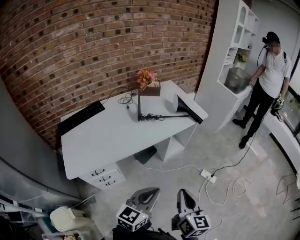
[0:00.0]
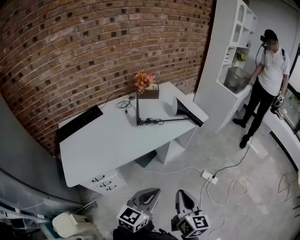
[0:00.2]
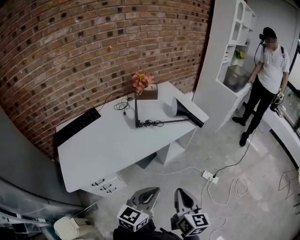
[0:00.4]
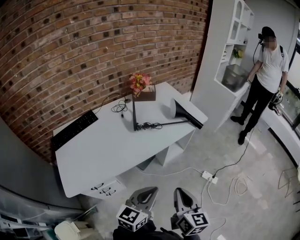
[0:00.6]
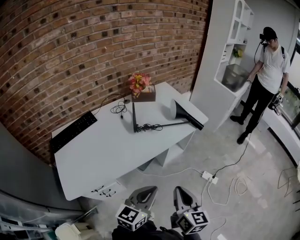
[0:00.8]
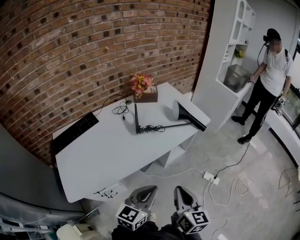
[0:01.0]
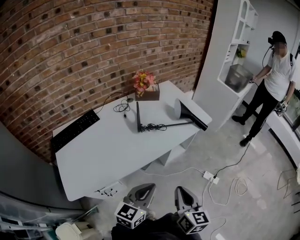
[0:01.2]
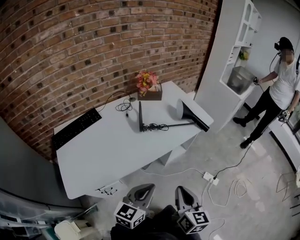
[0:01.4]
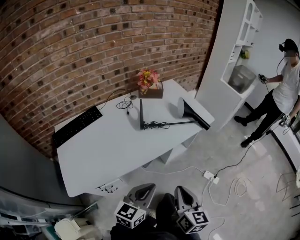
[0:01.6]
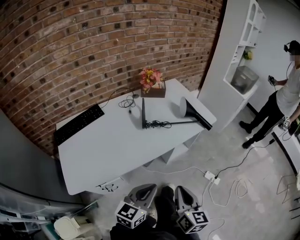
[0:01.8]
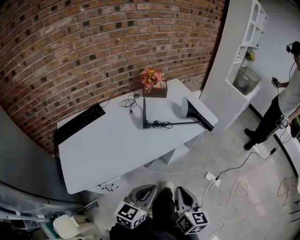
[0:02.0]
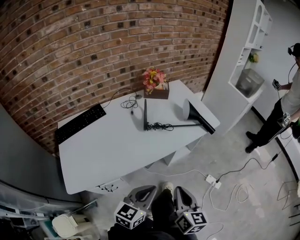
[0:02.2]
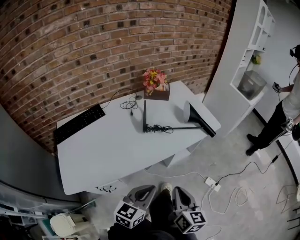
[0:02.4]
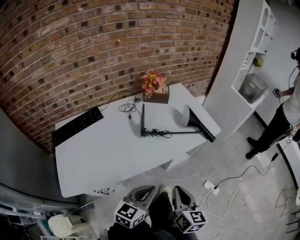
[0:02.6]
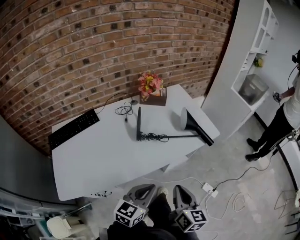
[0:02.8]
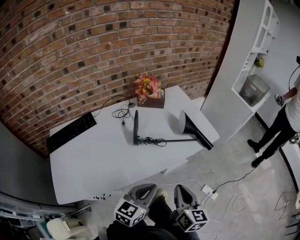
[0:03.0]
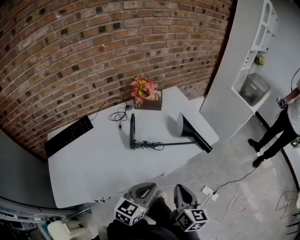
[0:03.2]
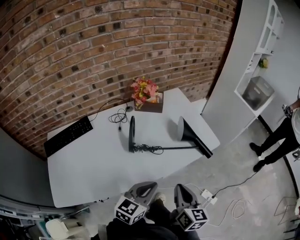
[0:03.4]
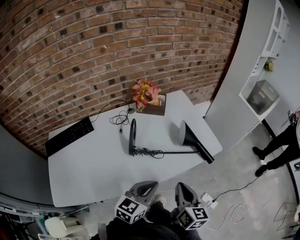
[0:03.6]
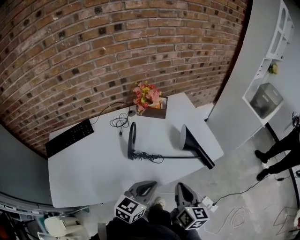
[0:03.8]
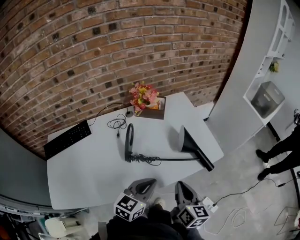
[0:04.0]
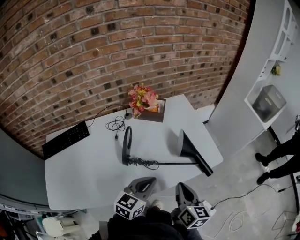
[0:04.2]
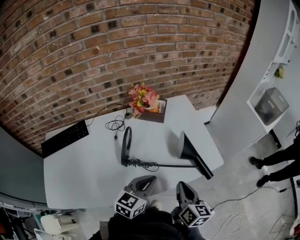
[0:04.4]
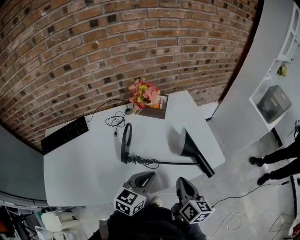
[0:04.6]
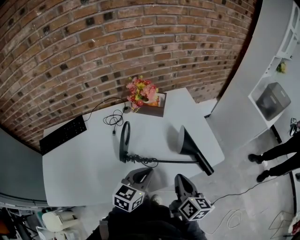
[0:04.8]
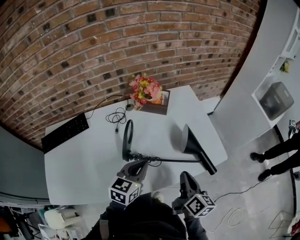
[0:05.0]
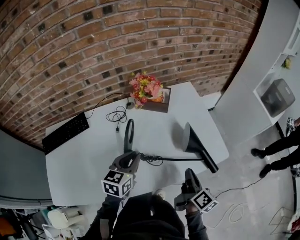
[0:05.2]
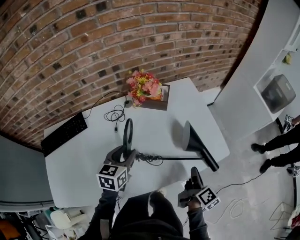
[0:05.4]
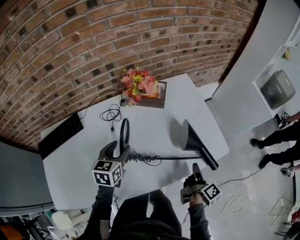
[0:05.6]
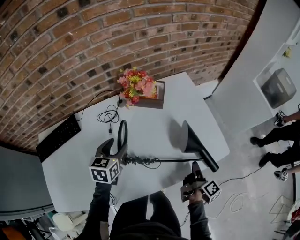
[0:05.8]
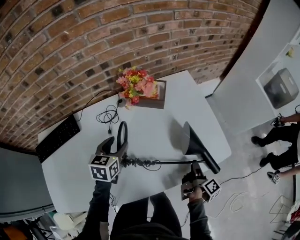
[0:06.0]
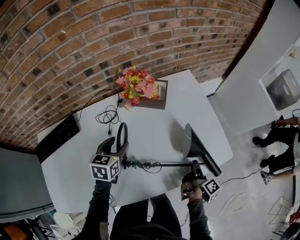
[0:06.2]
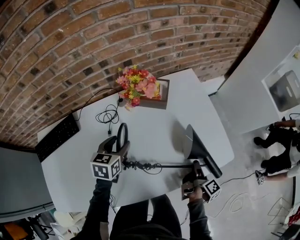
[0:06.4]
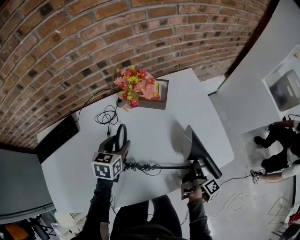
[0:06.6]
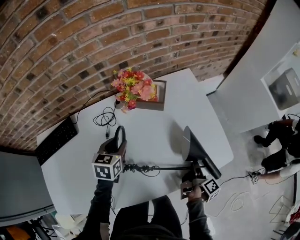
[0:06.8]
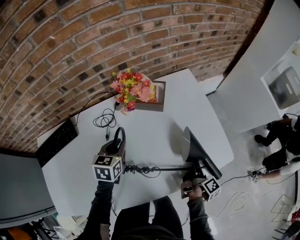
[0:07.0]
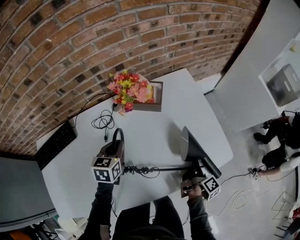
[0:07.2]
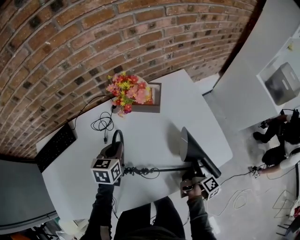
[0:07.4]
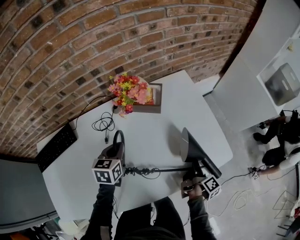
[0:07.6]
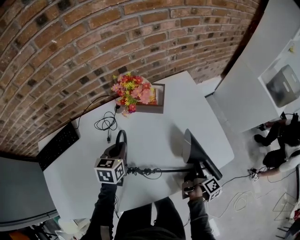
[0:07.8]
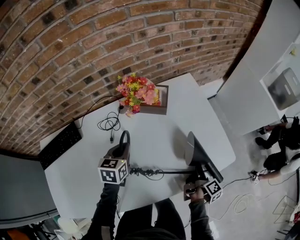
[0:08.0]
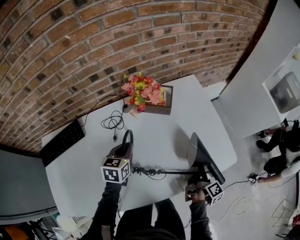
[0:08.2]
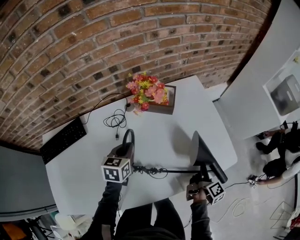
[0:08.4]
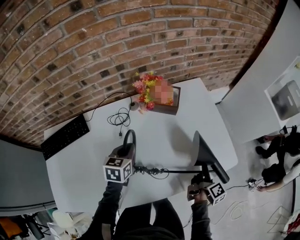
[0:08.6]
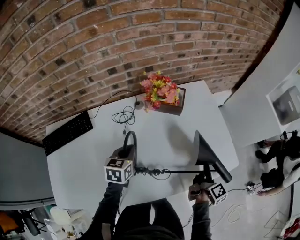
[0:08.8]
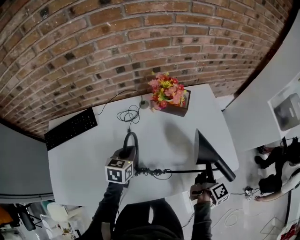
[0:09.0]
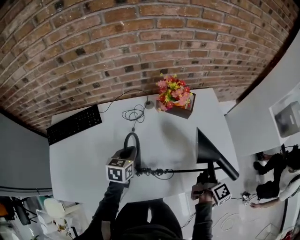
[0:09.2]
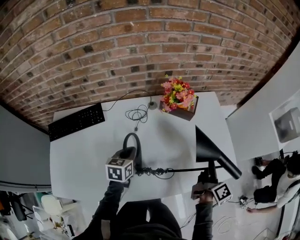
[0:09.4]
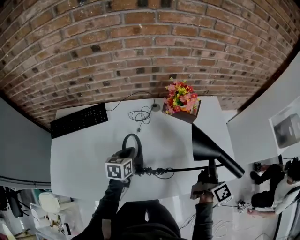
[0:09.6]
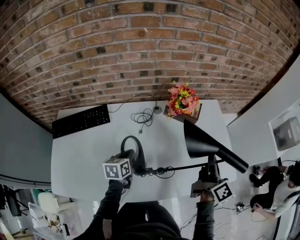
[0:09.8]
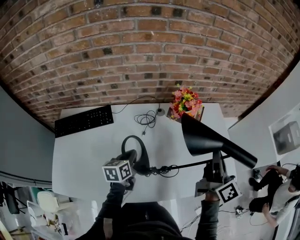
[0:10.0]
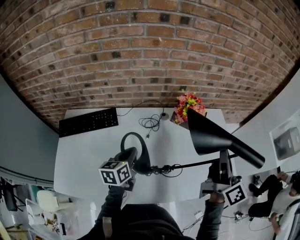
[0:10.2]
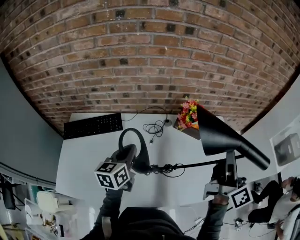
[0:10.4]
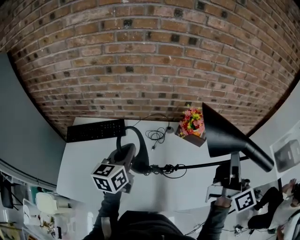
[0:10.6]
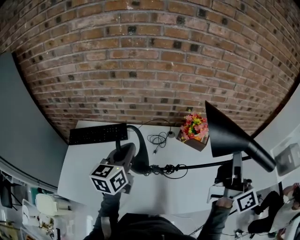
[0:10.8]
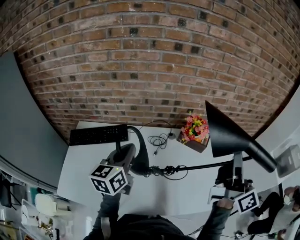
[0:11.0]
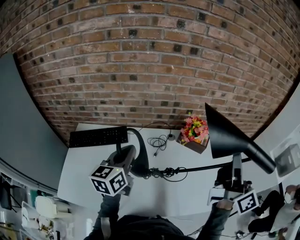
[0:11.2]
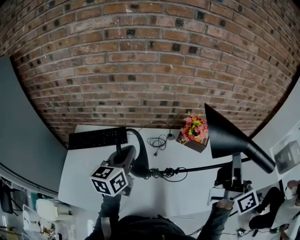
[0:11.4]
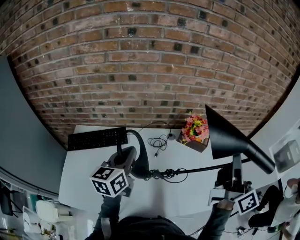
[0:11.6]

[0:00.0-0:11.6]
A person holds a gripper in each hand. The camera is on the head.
0:00.0 to 0:01.4: Both grippers move forward and to the left, some 15 cm.
0:01.4 to 0:02.8: Both grippers travel together forward, about 10 cm.
0:02.8 to 0:04.4: Both grippers travel together forward, some 25 cm.
0:04.4 to 0:05.8: The left gripper moves to the left and forward, approximately 25 cm, swivels about 30 degrees, and opens its fingers. Meanwhile the right gripper shifts some 15 cm downward, forward and to the right, rotates around the line of its fingers by some 50 degrees, clockwise from behind, and opens.
0:05.8 to 0:07.2: Both grippers travel together forward, some 5 cm. The left gripper closes its fingers. Meanwhile the right gripper closes up.
0:07.2 to 0:08.8: The right gripper heads upward, covering approximately 5 cm, while the left gripper shifts about 5 cm backward.
0:08.8 to 0:10.2: The right gripper heads upward and to the left, covering about 30 cm, and rotates roughly 50 degrees, while the left gripper heads to the left, upward and backward, covering some 15 cm, and rotates roughly 30 degrees.
0:10.2 to 0:11.6: The two grippers go about 10 cm upward.

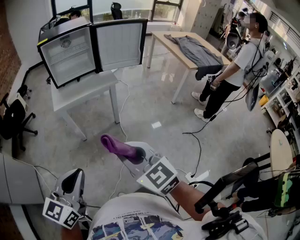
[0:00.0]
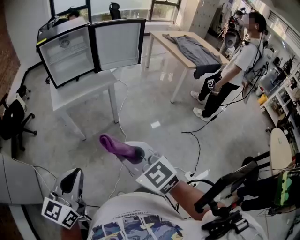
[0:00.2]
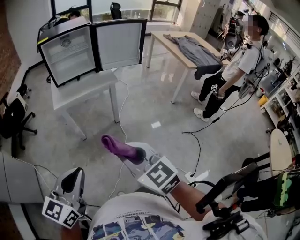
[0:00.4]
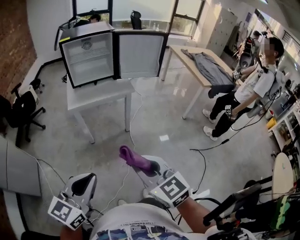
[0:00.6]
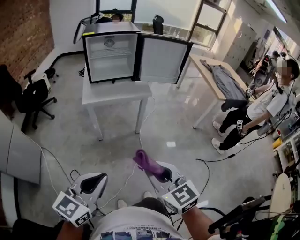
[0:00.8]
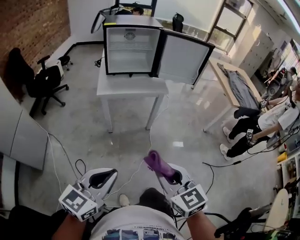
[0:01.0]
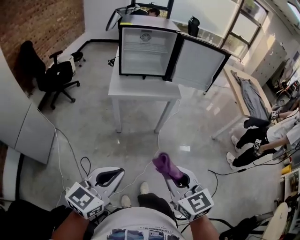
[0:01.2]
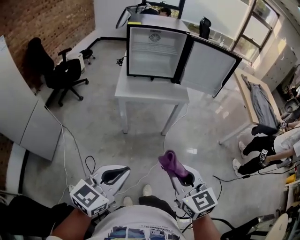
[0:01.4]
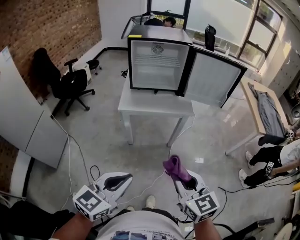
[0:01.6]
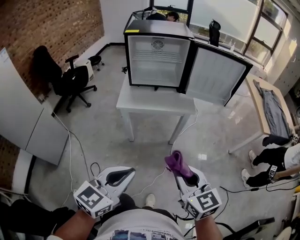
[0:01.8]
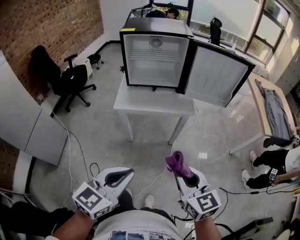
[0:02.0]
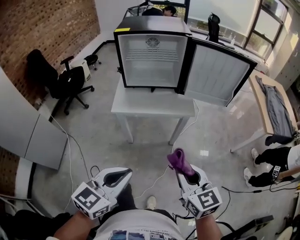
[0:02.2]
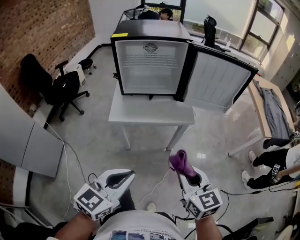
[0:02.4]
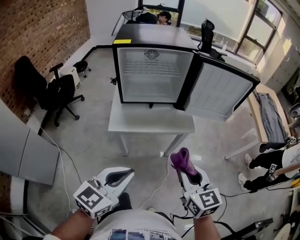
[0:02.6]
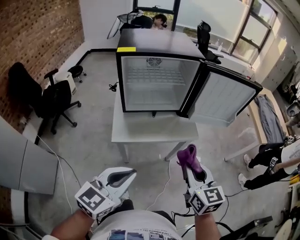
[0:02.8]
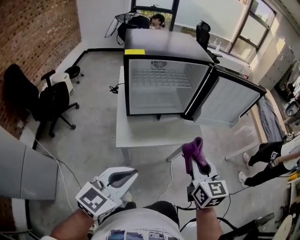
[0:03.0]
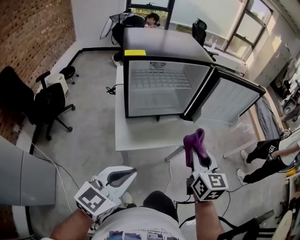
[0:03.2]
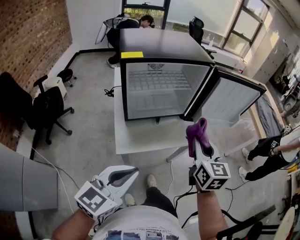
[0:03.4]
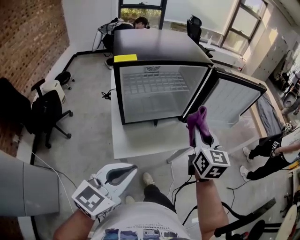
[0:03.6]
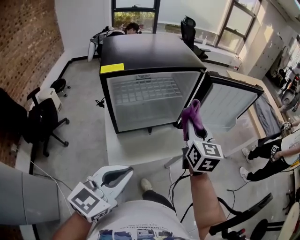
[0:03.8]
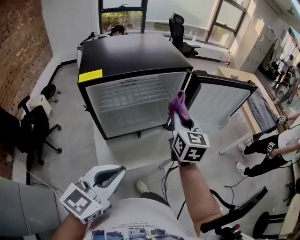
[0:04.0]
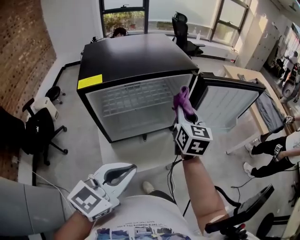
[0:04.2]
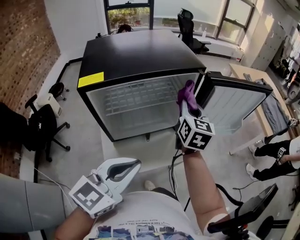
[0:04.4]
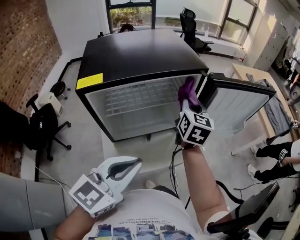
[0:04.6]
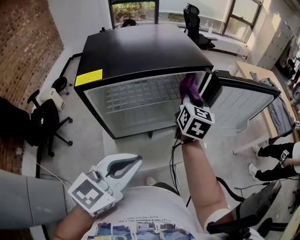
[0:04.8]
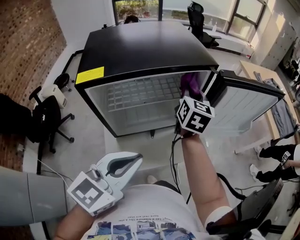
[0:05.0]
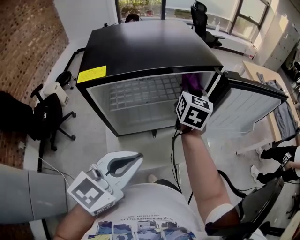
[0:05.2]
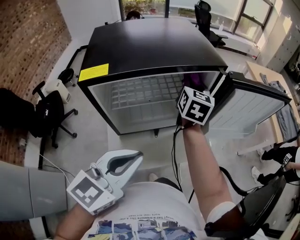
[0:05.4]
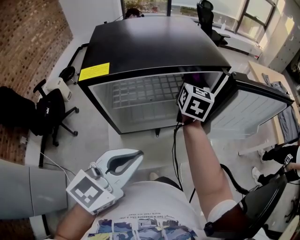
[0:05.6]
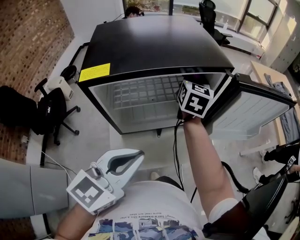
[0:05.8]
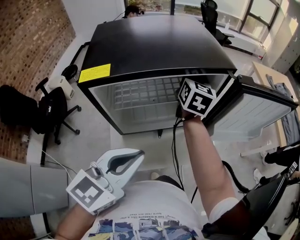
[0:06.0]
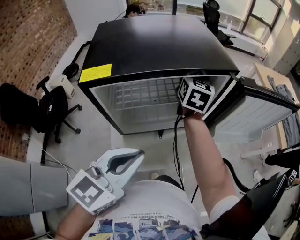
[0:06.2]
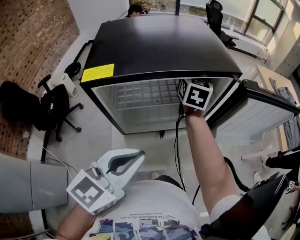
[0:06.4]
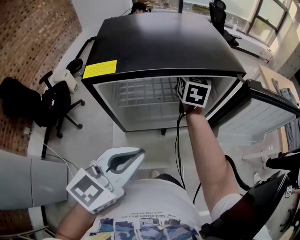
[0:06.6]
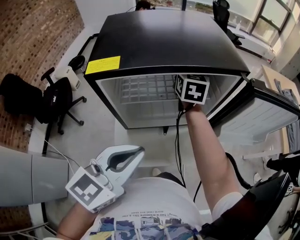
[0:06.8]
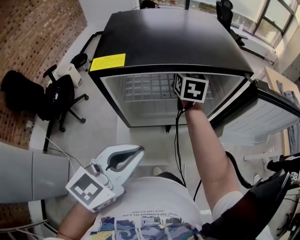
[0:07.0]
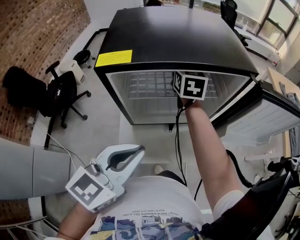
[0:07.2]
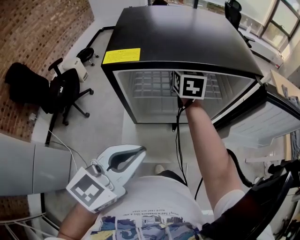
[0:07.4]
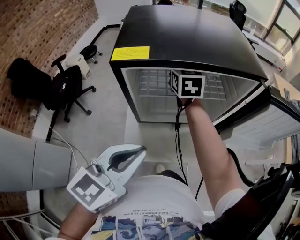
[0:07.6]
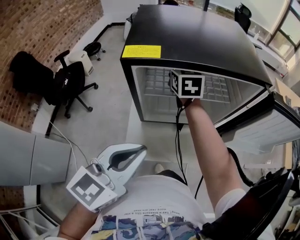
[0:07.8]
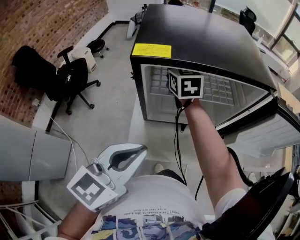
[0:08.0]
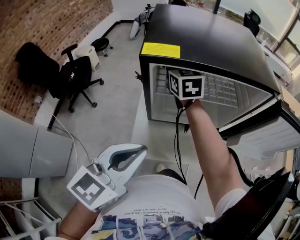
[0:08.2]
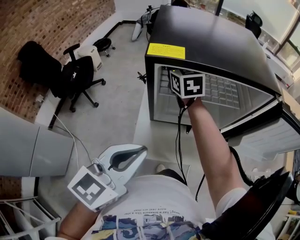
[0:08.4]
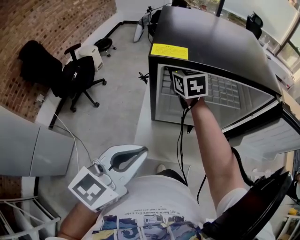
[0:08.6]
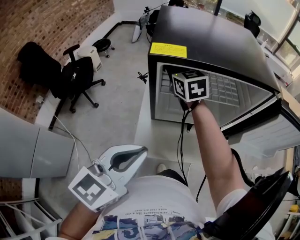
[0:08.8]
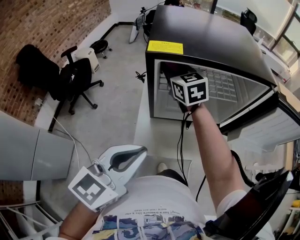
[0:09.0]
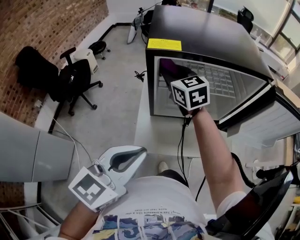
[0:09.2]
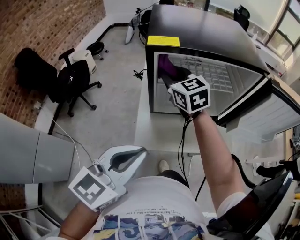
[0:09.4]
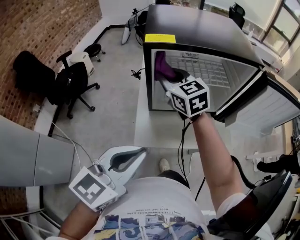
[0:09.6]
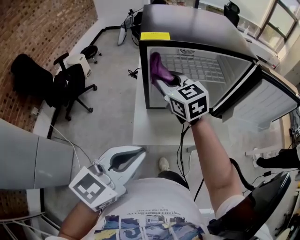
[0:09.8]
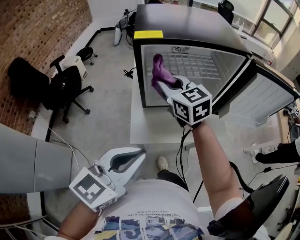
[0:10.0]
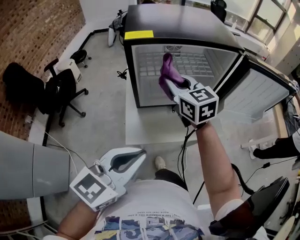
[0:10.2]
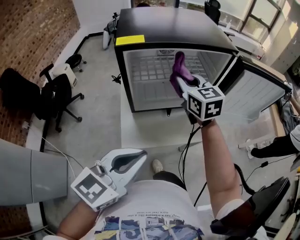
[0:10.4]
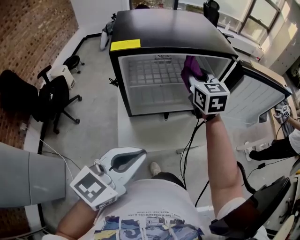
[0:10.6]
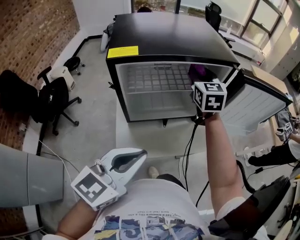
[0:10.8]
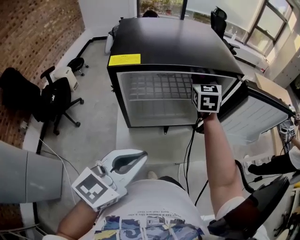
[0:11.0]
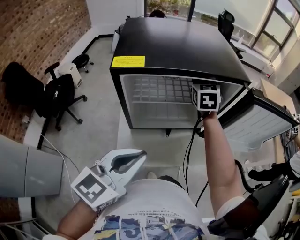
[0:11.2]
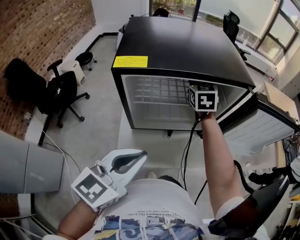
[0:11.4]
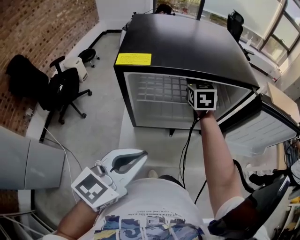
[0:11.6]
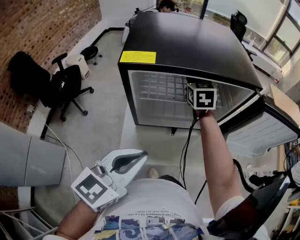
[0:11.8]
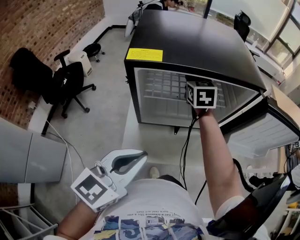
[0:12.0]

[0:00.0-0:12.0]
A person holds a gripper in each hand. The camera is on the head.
0:00.0 to 0:01.6: Both grippers move forward, some 10 cm.
0:01.6 to 0:03.0: The left gripper goes about 30 cm forward and to the left; the right gripper heads forward, covering approximately 30 cm, and changes its angle by roughly 30 degrees.
0:03.0 to 0:04.4: The right gripper travels forward by some 30 cm. Meanwhile the left gripper moves forward, some 20 cm.
0:04.4 to 0:06.0: The right gripper shifts approximately 15 cm to the left and forward.
0:06.0 to 0:07.6: The left gripper changes place by about 5 cm, while the right gripper travels to the left by about 15 cm, and rotates some 30 degrees.
0:07.6 to 0:09.0: The left gripper ends up roughly 5 cm from where it was. The right gripper shifts roughly 15 cm to the left and backward, and rotates some 20 degrees.
0:09.0 to 0:10.4: The left gripper heads backward, covering roughly 5 cm; the right gripper travels to the right and backward by some 20 cm.
0:10.4 to 0:12.0: The left gripper moves forward, roughly 5 cm; the right gripper travels forward by roughly 15 cm.
